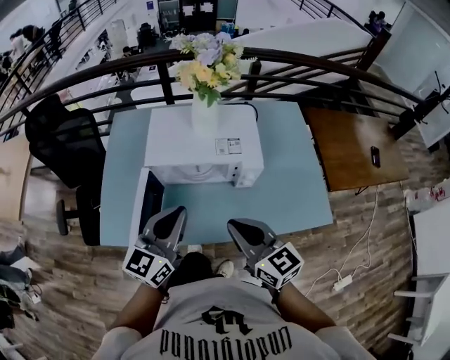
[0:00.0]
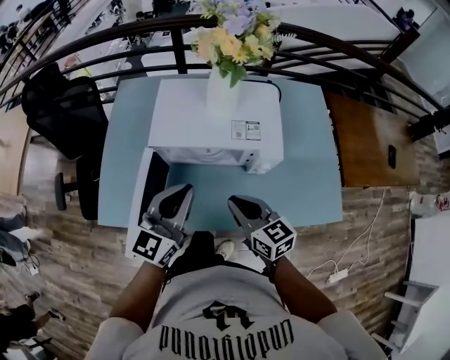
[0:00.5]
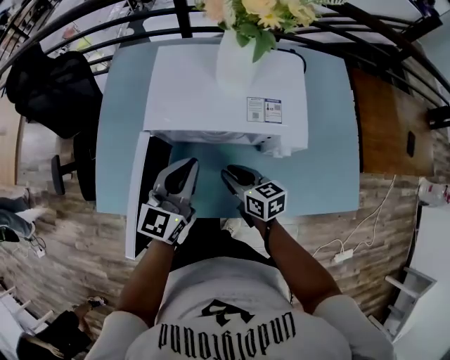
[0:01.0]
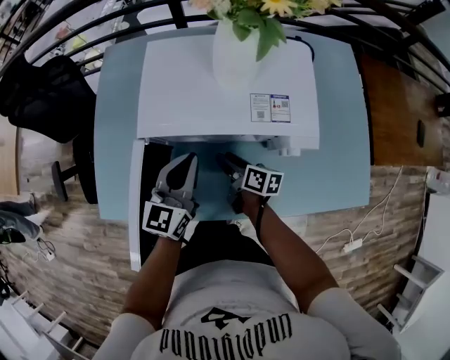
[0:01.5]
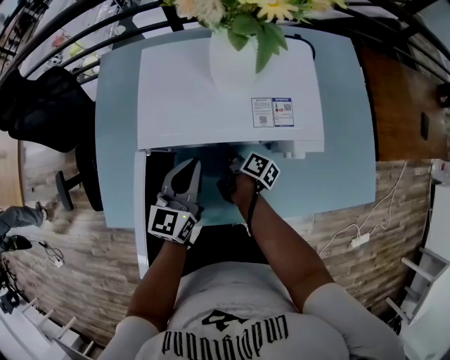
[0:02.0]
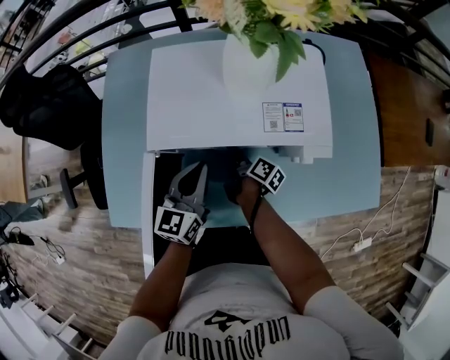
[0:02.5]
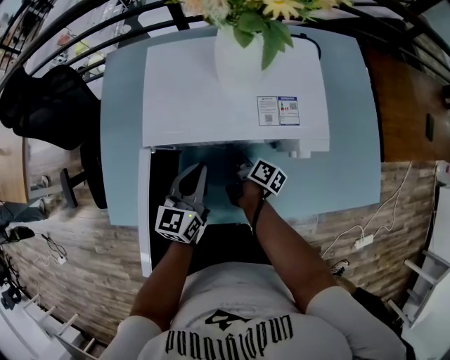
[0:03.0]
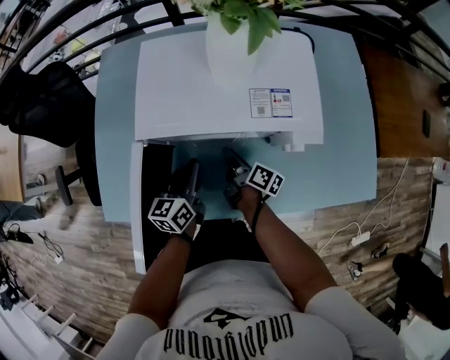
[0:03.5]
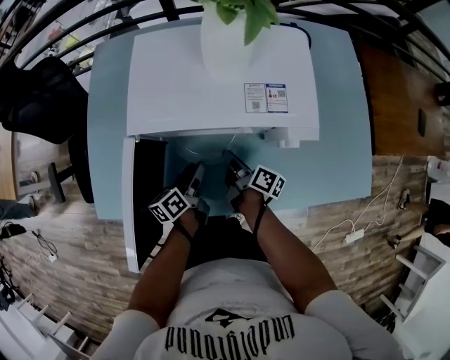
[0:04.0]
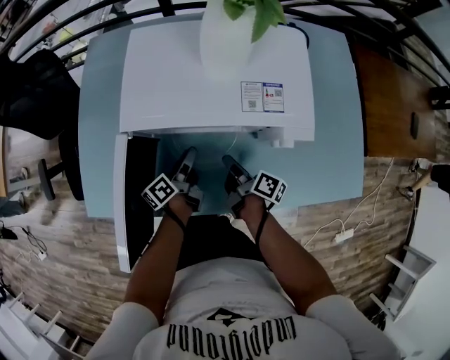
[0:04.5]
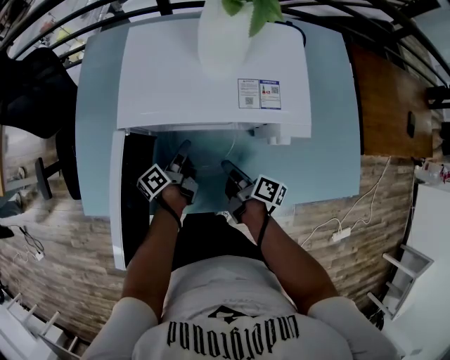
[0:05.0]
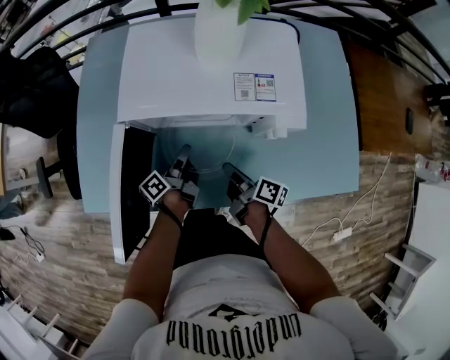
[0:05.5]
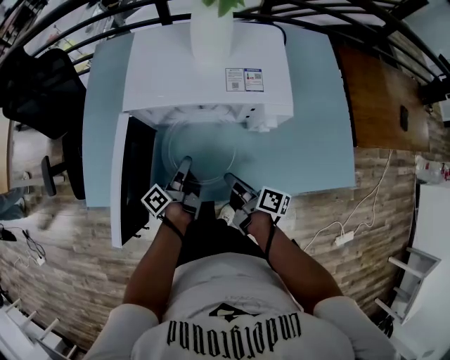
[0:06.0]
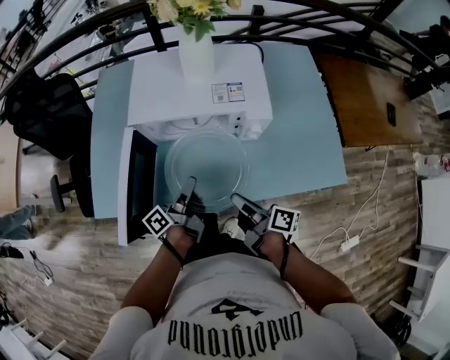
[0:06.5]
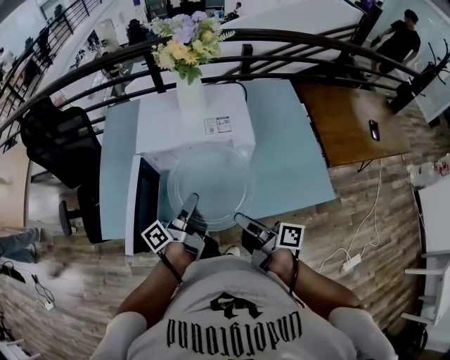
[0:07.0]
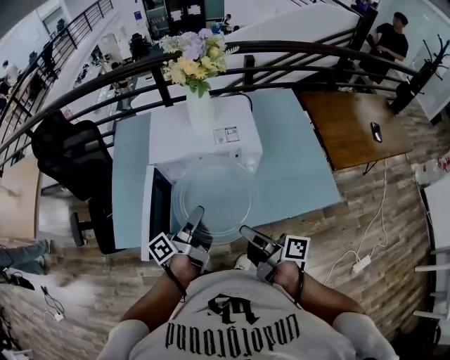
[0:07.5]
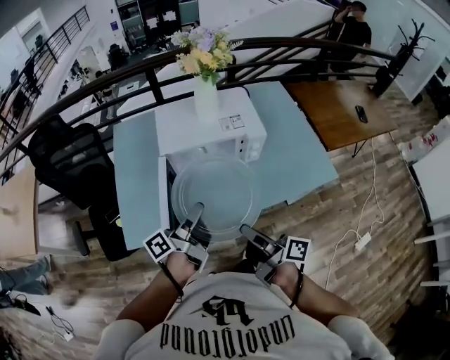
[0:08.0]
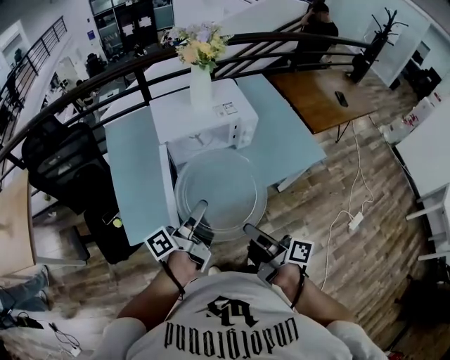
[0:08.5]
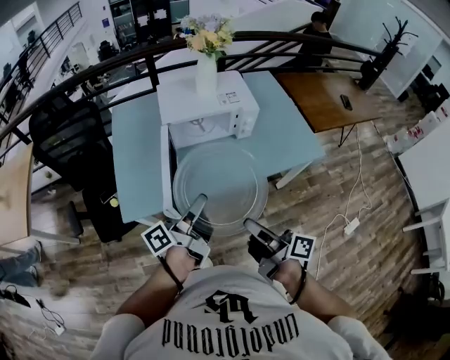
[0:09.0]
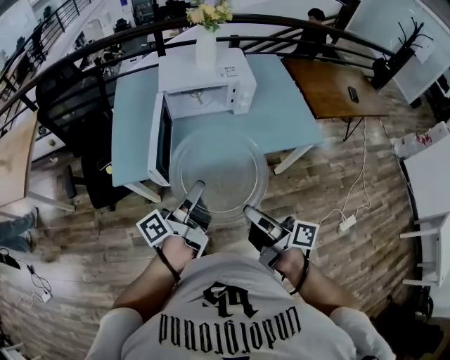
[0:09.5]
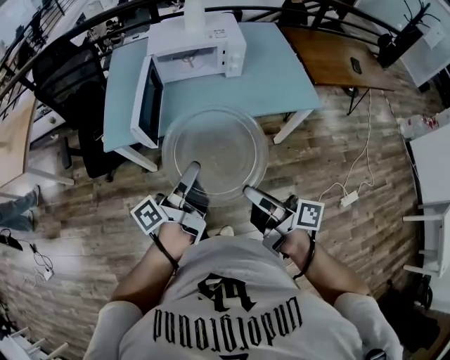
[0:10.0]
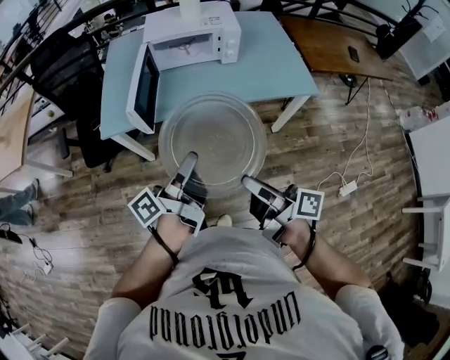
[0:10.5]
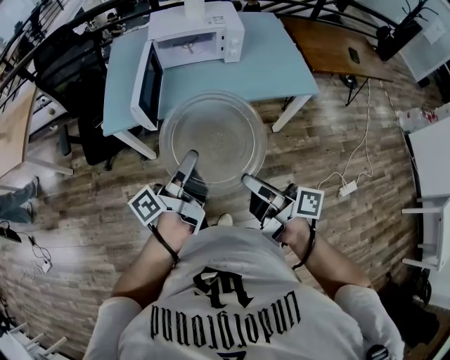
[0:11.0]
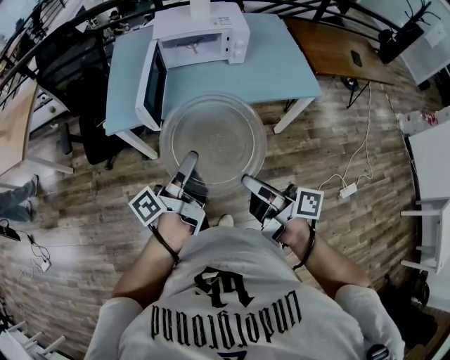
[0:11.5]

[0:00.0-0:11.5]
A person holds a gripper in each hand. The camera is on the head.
0:00.0 to 0:02.0: The right gripper is displaced downward and forward by about 40 cm, twists roughly 80 degrees clockwise, seen from behind, and opens. The left gripper moves downward and forward, roughly 25 cm.
0:02.0 to 0:04.0: The right gripper is displaced backward by approximately 5 cm, and closes. Meanwhile the left gripper travels downward by some 15 cm, rolls counterclockwise, seen from behind, by roughly 50 degrees, and opens.
0:04.0 to 0:06.0: The right gripper goes approximately 15 cm backward and upward, while the left gripper moves roughly 5 cm, swivels some 30 degrees, and closes up.
0:06.0 to 0:07.5: Both grippers travel together upward and backward, roughly 25 cm.
0:07.5 to 0:09.5: The grippers both shift backward by approximately 25 cm.
0:09.5 to 0:11.5: The two grippers go some 10 cm backward.

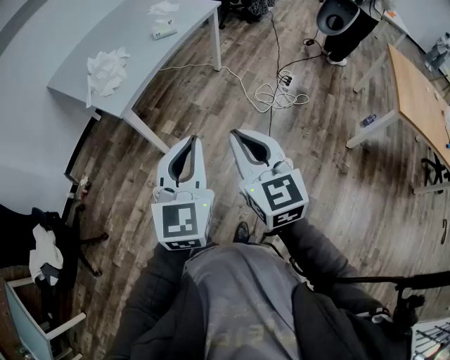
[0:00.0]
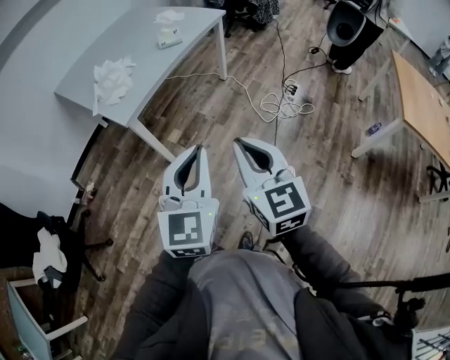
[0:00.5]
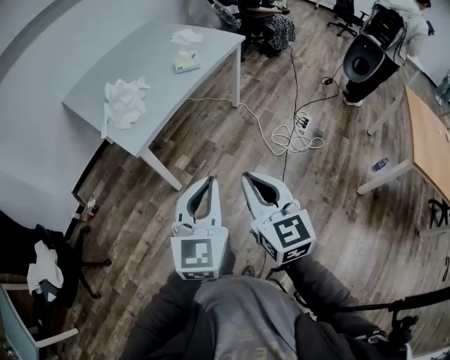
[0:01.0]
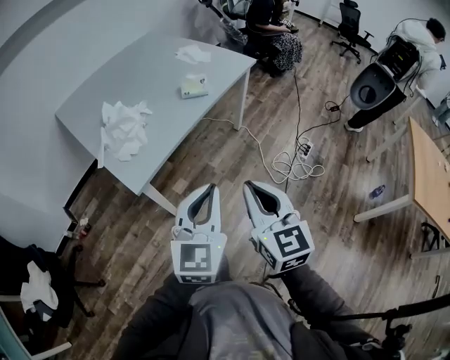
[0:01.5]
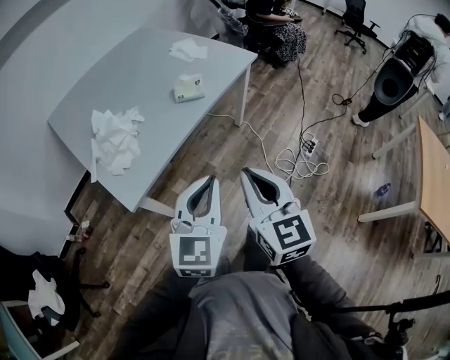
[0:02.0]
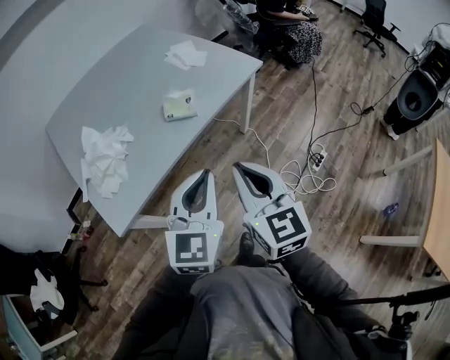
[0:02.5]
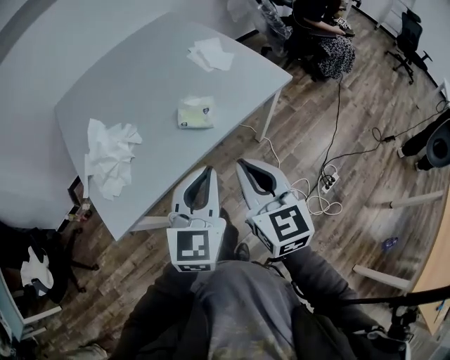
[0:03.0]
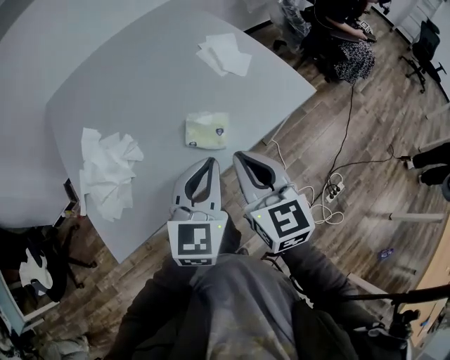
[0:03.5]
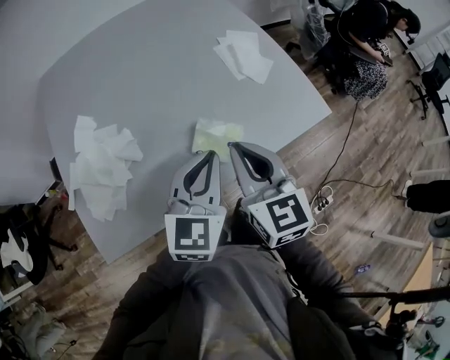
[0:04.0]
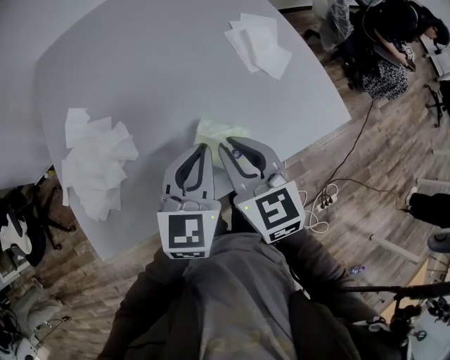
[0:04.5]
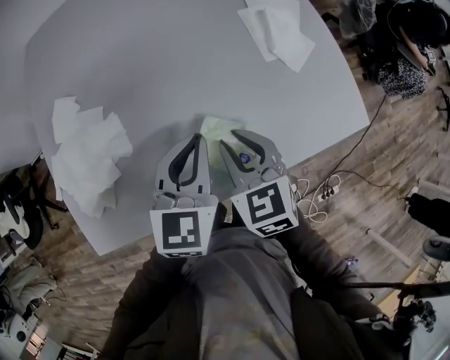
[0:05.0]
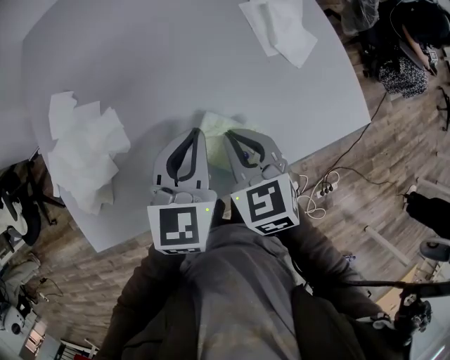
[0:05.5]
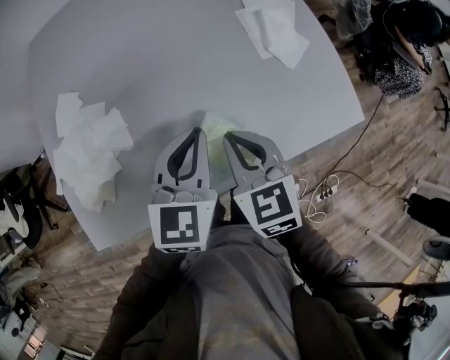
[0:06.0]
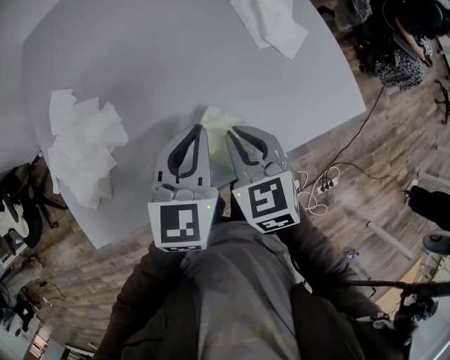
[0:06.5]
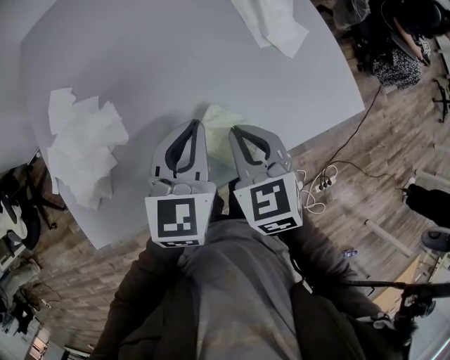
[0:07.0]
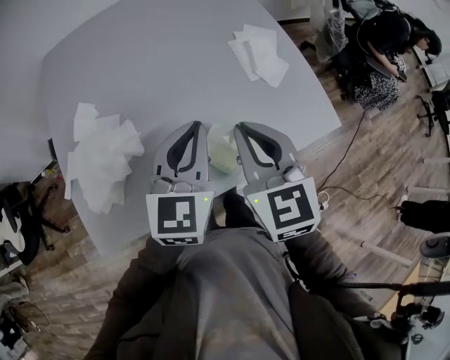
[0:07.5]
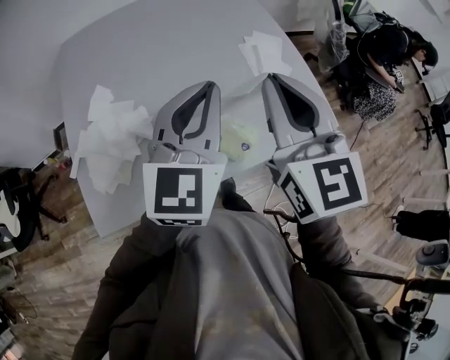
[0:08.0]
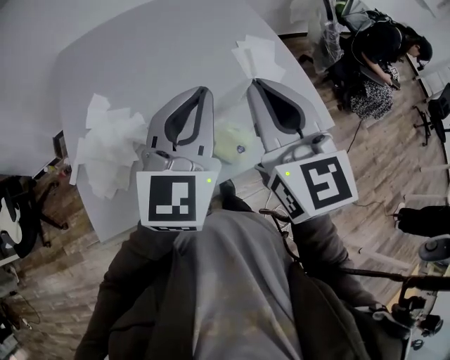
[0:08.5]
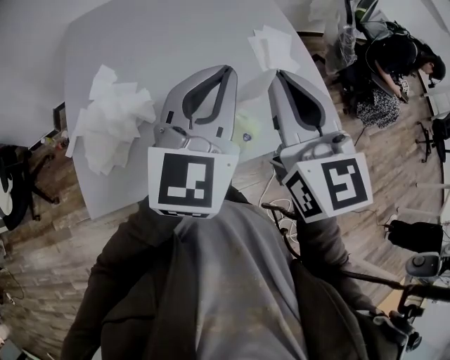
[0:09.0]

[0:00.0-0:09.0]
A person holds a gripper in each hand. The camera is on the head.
0:00.0 to 0:02.0: Both grippers travel together forward, about 35 cm.
0:02.0 to 0:04.5: The pair of grippers is taken roughly 50 cm. The left gripper turns by approximately 30 degrees; the right gripper rotates about 40 degrees.
0:04.5 to 0:07.0: The right gripper shifts roughly 5 cm downward.
0:07.0 to 0:09.0: The two grippers go roughly 25 cm upward. The right gripper points its fingers approximately 30 degrees further upward; the left gripper rotates roughly 20 degrees.

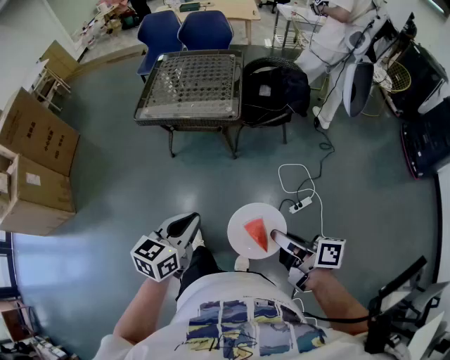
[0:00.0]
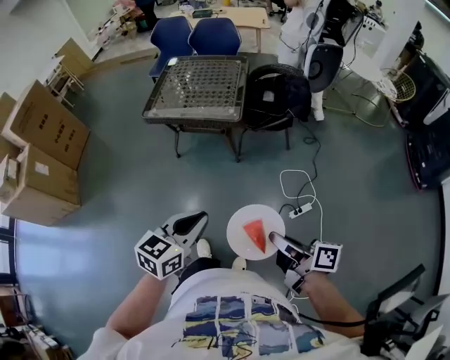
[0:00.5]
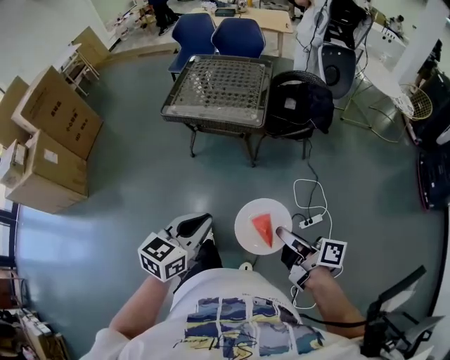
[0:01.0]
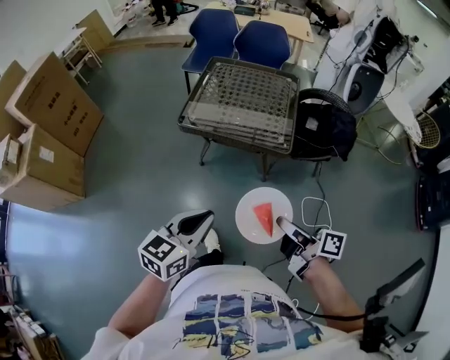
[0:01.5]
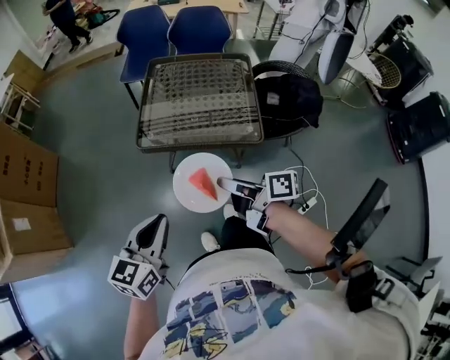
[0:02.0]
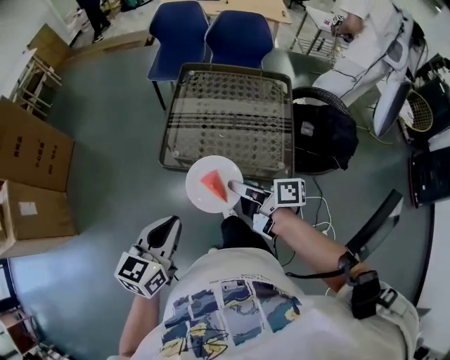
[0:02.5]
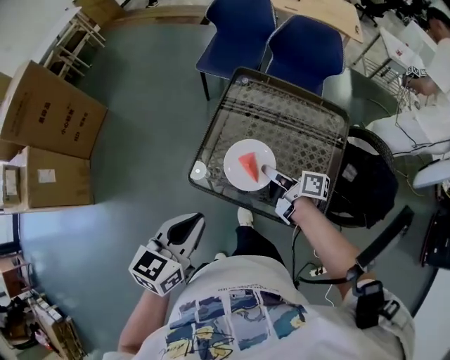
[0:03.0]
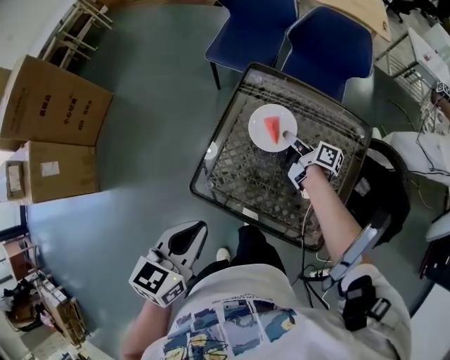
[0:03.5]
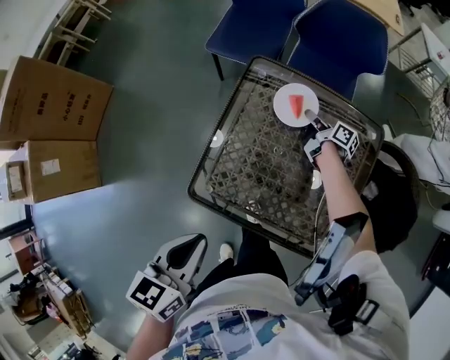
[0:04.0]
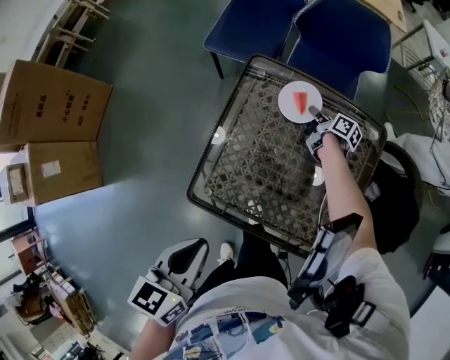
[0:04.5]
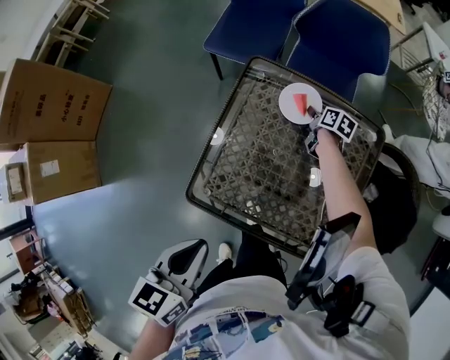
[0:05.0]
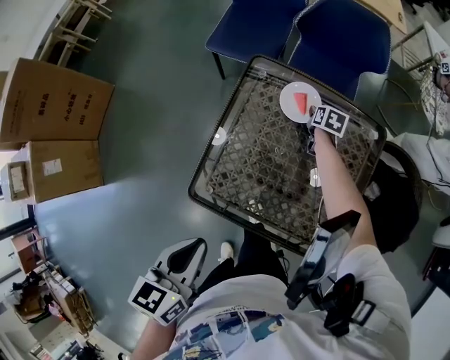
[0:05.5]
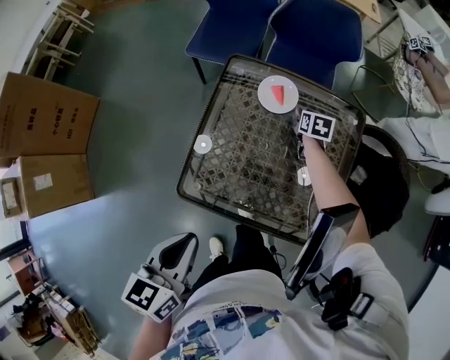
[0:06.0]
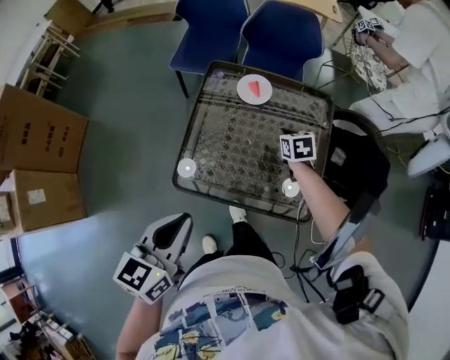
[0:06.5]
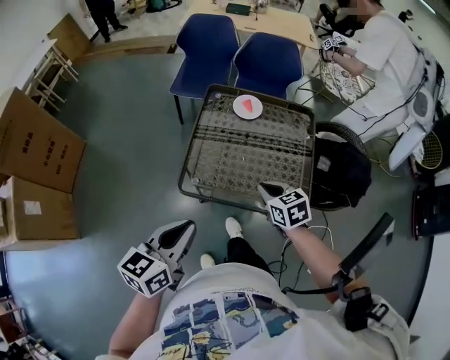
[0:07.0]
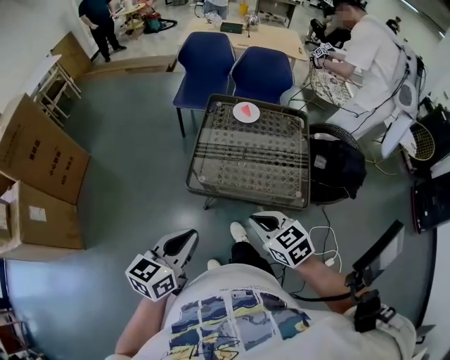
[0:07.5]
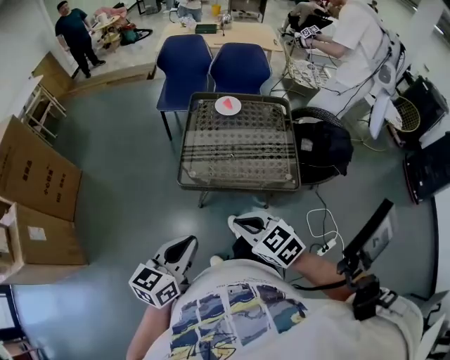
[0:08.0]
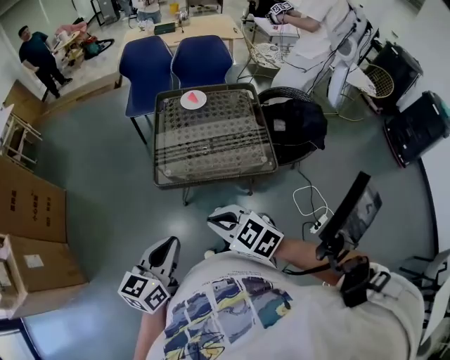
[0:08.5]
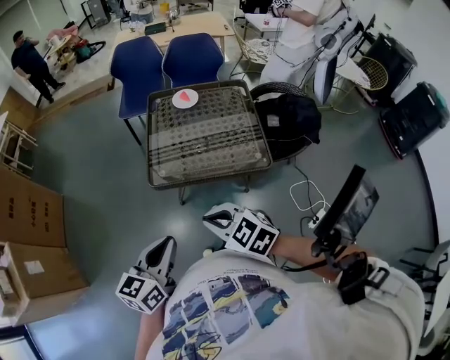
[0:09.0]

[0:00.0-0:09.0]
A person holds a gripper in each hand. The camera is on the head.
0:00.0 to 0:02.0: The two grippers go about 40 cm forward and to the left.
0:02.0 to 0:04.5: The two grippers travel together, forward, about 60 cm. The left gripper turns by roughly 30 degrees; the right gripper shifts approximately 35 cm downward, and changes its angle by some 30 degrees.
0:04.5 to 0:07.0: The left gripper goes some 20 cm backward and upward, and swivels about 30 degrees. The right gripper moves backward and upward, approximately 50 cm, rolls counterclockwise, seen from behind, by about 60 degrees, and opens, then closes again.
0:07.0 to 0:09.0: The right gripper moves backward and to the left, about 30 cm, and rotates approximately 20 degrees. Meanwhile the left gripper moves backward, roughly 15 cm.
